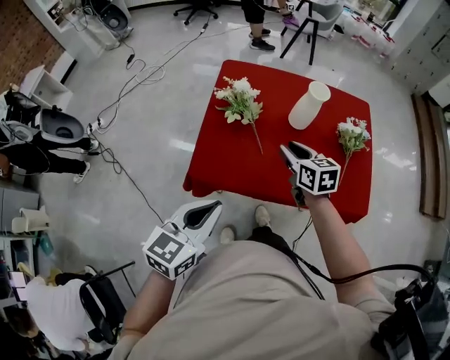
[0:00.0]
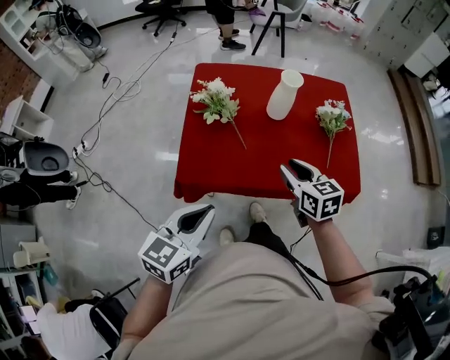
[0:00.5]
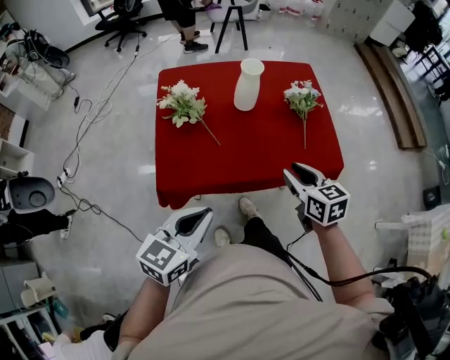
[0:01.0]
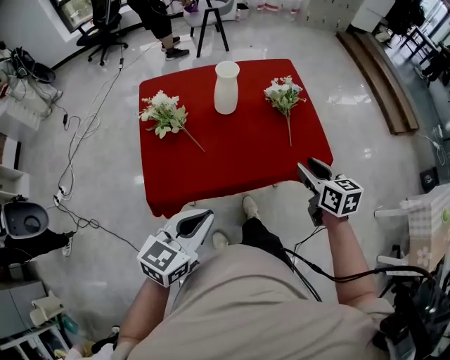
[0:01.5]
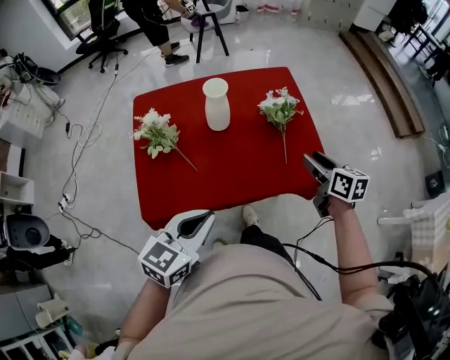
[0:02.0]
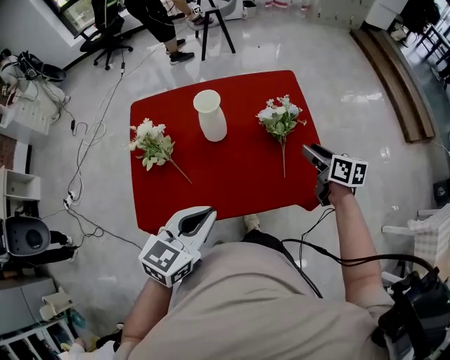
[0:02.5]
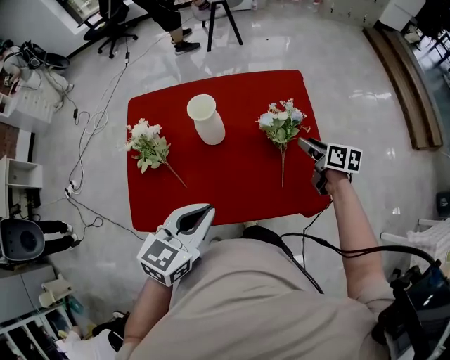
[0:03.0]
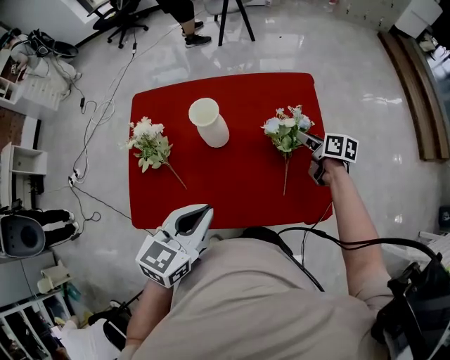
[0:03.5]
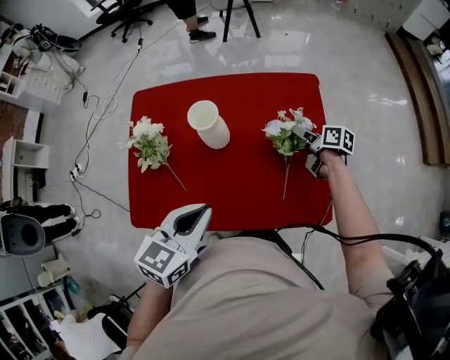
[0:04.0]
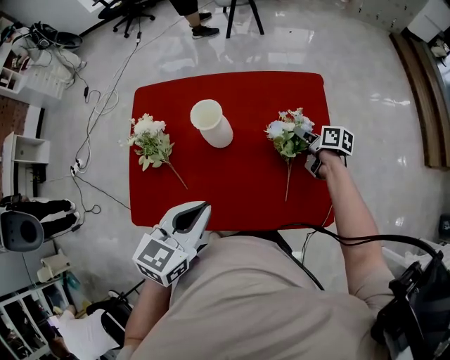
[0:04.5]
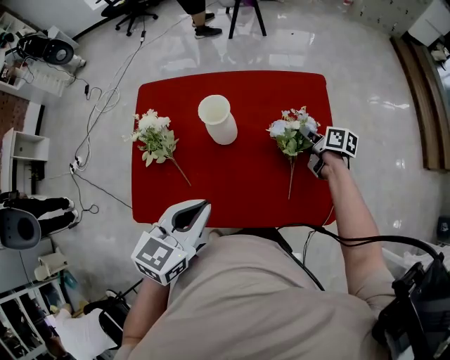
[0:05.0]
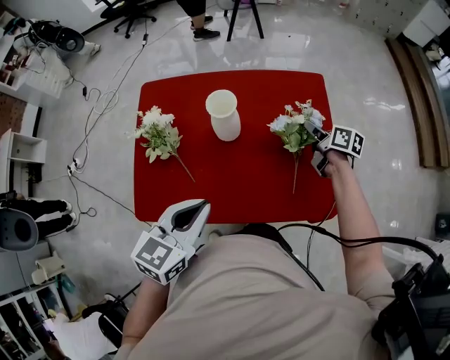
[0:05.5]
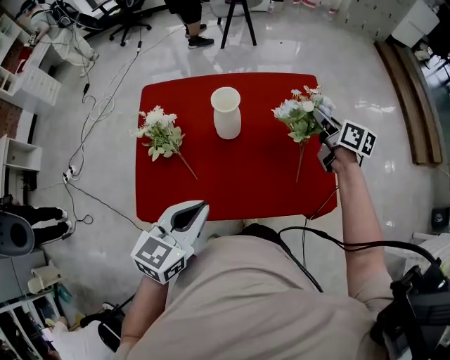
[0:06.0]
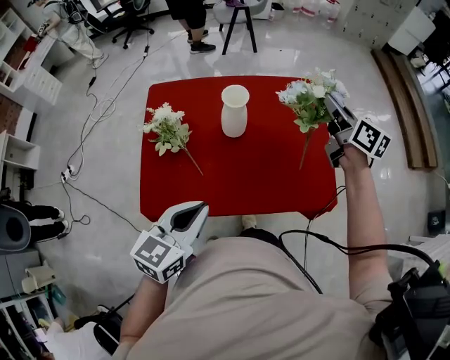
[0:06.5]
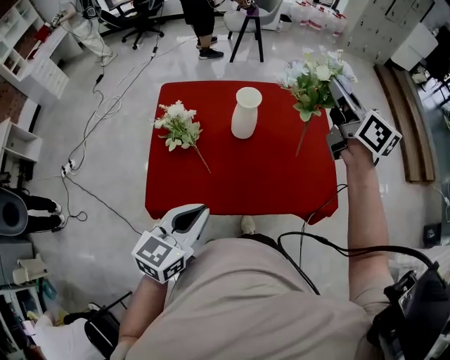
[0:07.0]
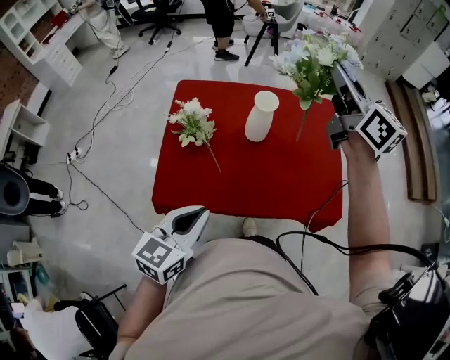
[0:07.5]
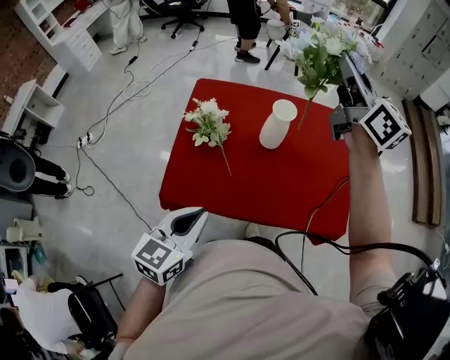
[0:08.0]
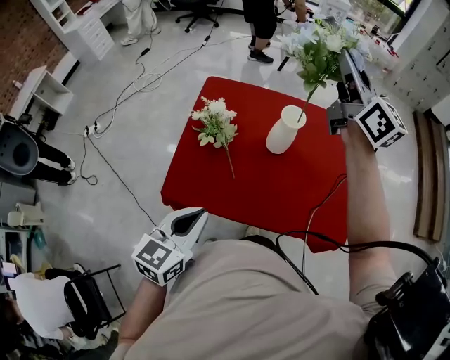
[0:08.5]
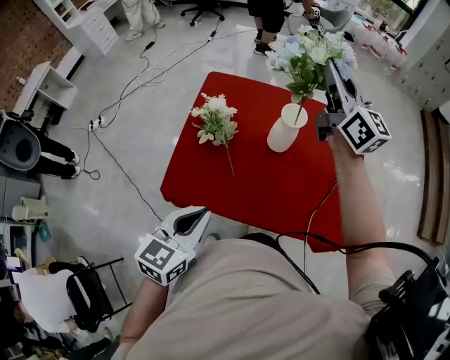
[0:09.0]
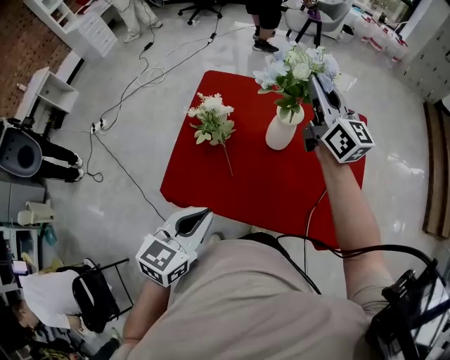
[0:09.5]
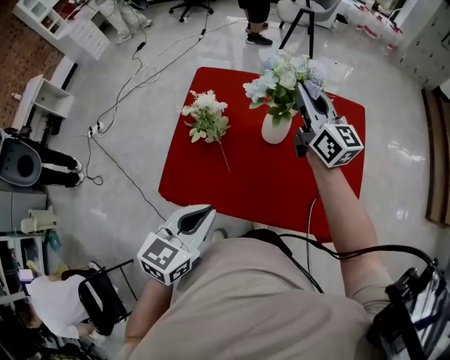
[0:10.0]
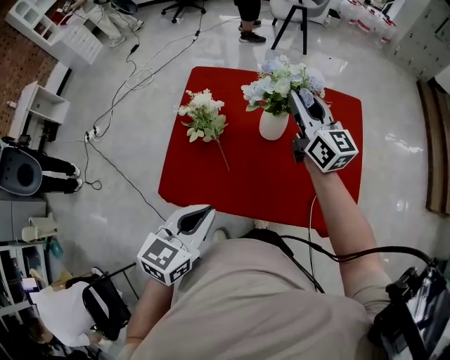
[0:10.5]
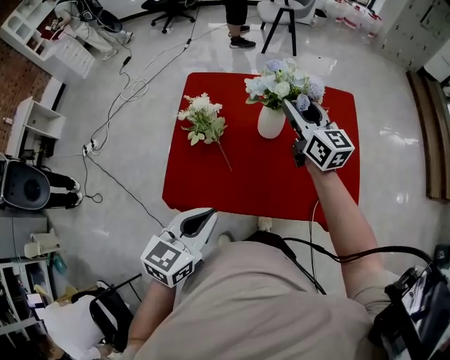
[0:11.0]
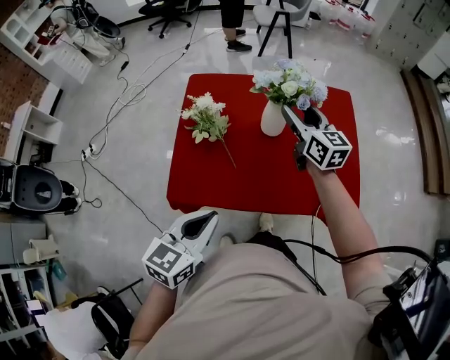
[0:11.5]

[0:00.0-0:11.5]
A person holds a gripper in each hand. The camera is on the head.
0:00.0 to 0:02.0: The left gripper moves some 15 cm, and turns by roughly 30 degrees, while the right gripper shifts by roughly 30 cm, and changes its angle by some 30 degrees.
0:02.0 to 0:04.0: The right gripper shifts approximately 30 cm forward and downward, and turns by about 30 degrees, while the left gripper goes approximately 15 cm forward and to the right.
0:04.0 to 0:06.0: The right gripper is displaced upward by some 15 cm, rotates some 30 degrees, and closes up; the left gripper goes roughly 10 cm to the left and backward.
0:06.0 to 0:07.5: The right gripper goes approximately 35 cm upward and to the left, and angles its fingers upward, by some 30 degrees. The left gripper is displaced backward and to the left by roughly 10 cm.
0:07.5 to 0:09.5: The right gripper travels downward, forward and to the left by roughly 15 cm.
0:09.5 to 0:11.5: The right gripper travels downward and backward by roughly 15 cm, and opens its fingers. The left gripper shifts by some 5 cm.

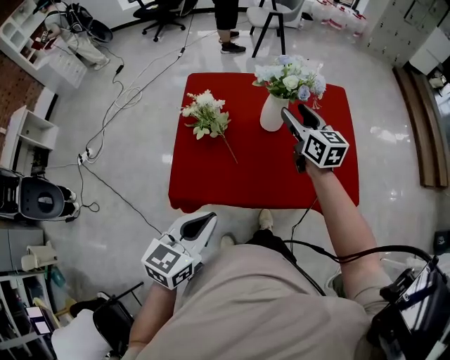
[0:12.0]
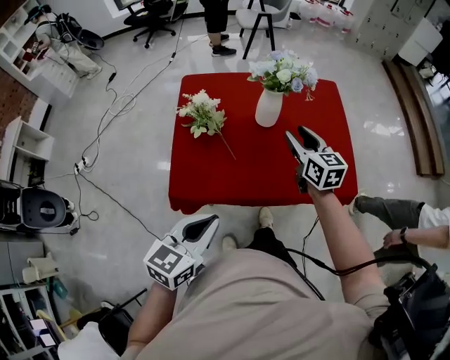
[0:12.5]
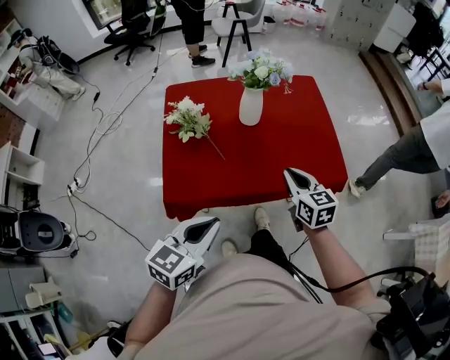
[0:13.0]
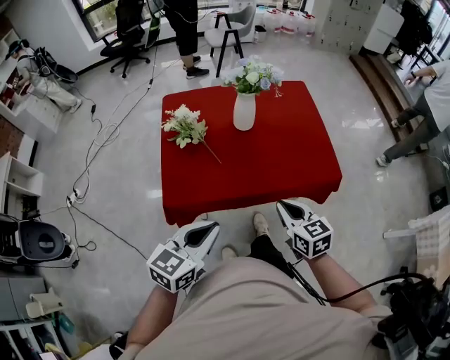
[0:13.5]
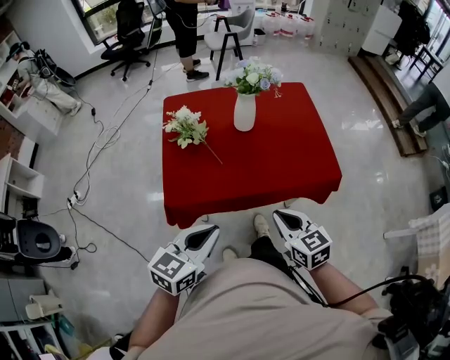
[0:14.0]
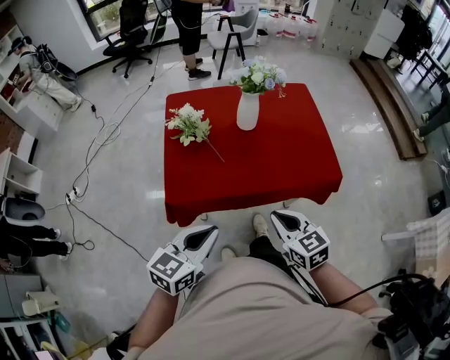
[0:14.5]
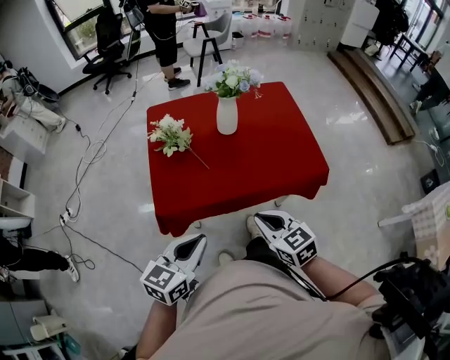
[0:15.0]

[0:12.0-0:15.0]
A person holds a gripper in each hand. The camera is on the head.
0:12.0 to 0:13.5: The left gripper moves backward, about 5 cm; the right gripper is displaced backward by some 35 cm, and closes its fingers.
0:13.5 to 0:15.0: The right gripper goes roughly 5 cm backward.

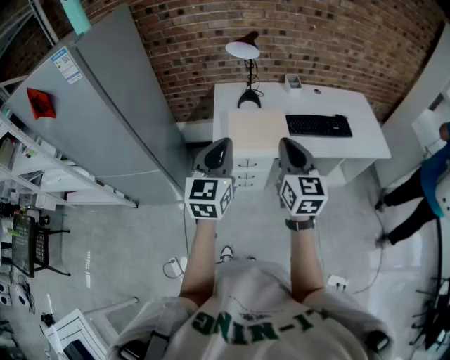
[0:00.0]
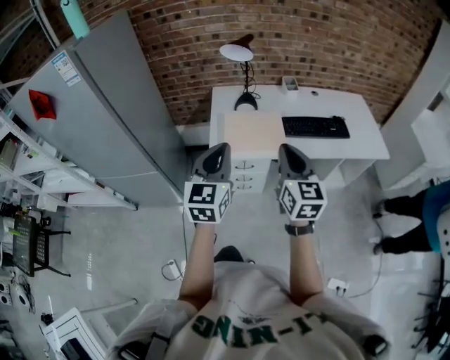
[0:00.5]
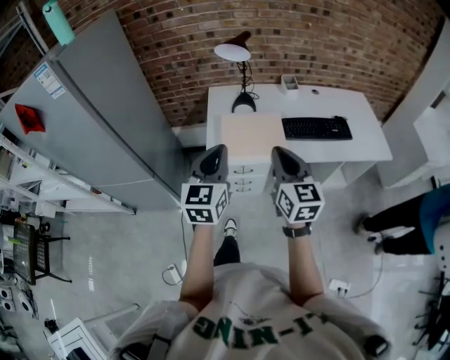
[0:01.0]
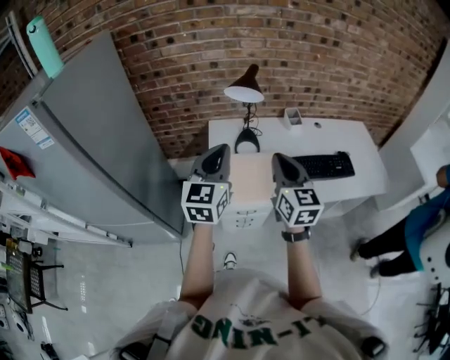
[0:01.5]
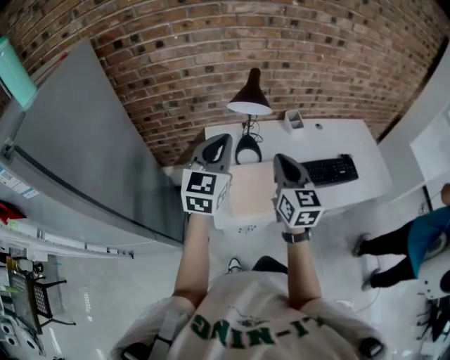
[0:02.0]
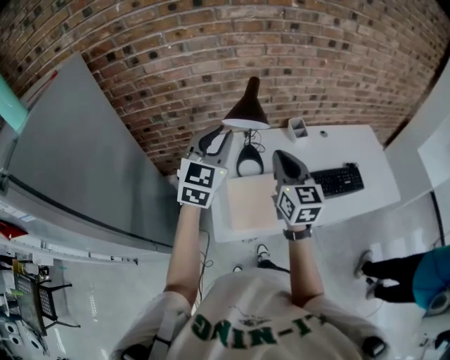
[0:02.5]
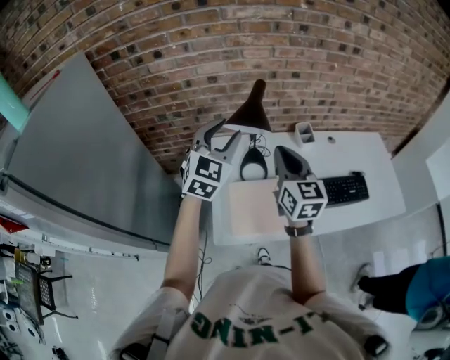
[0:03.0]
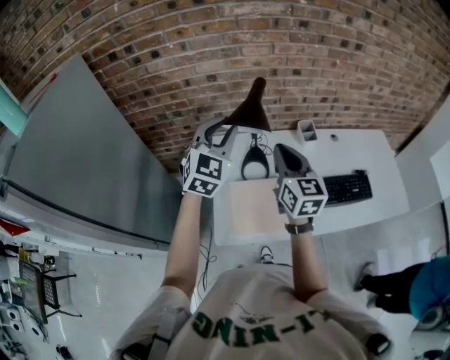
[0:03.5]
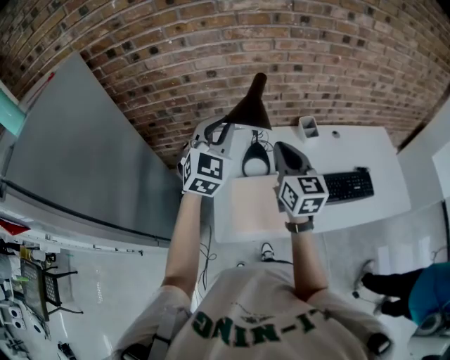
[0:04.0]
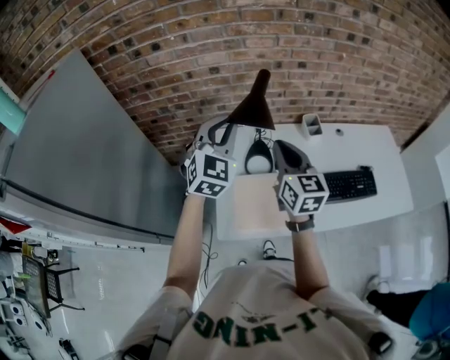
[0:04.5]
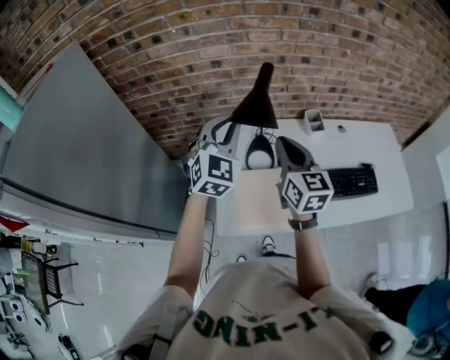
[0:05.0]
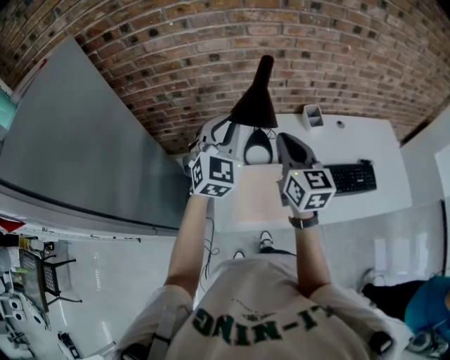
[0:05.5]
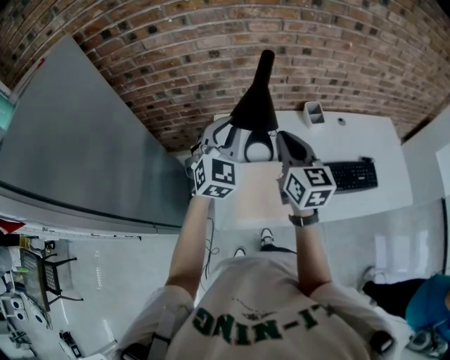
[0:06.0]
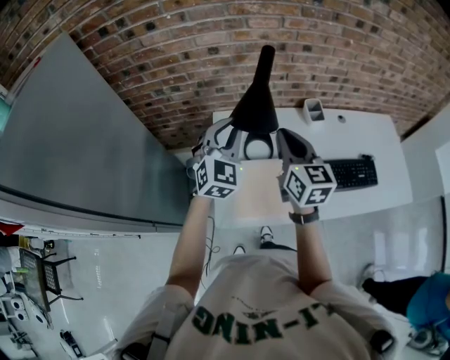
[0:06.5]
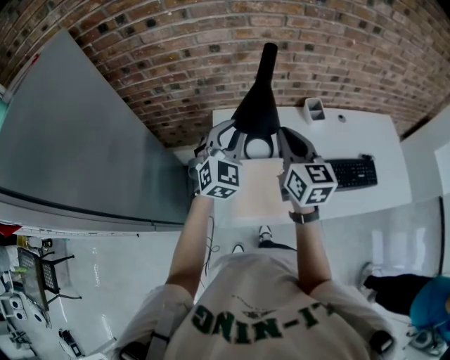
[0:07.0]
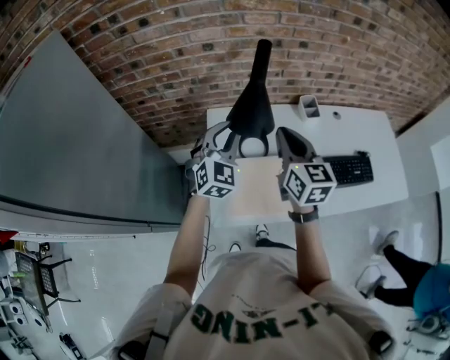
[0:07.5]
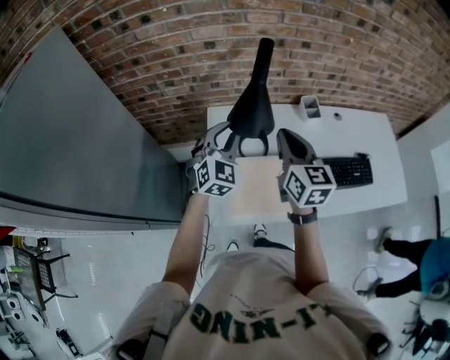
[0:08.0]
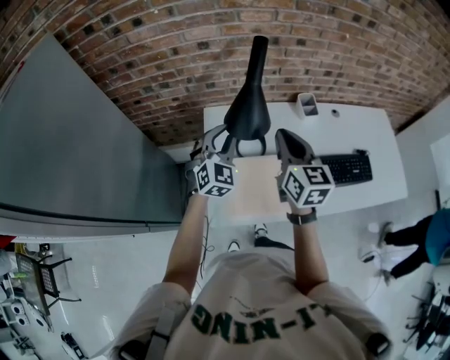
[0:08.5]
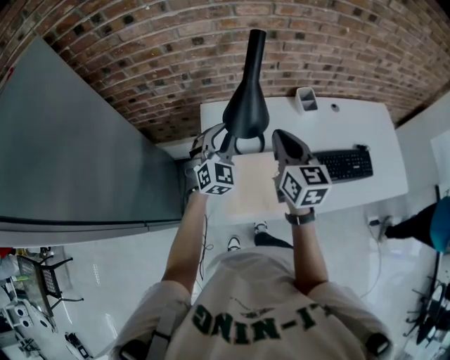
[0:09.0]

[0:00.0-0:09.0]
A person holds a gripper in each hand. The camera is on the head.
0:00.0 to 0:02.0: The grippers both shift forward by approximately 30 cm.
0:02.0 to 0:04.5: Both grippers travel together forward, approximately 15 cm. The left gripper changes its angle by roughly 30 degrees, and opens and closes again.
0:04.5 to 0:07.0: The left gripper is displaced downward by about 10 cm.
0:07.0 to 0:09.0: The left gripper travels downward by some 10 cm.

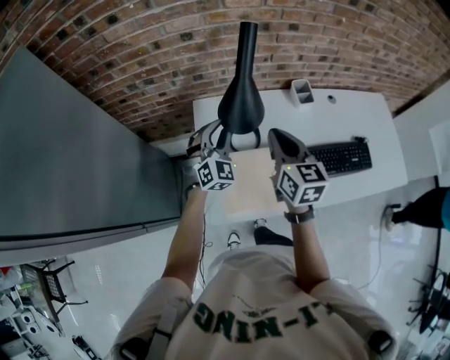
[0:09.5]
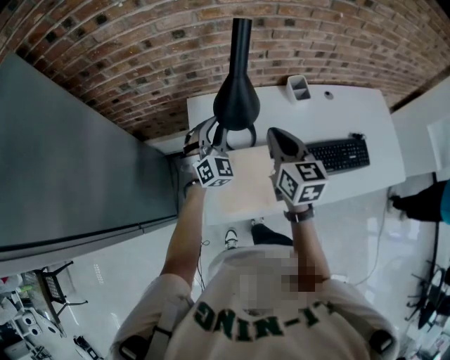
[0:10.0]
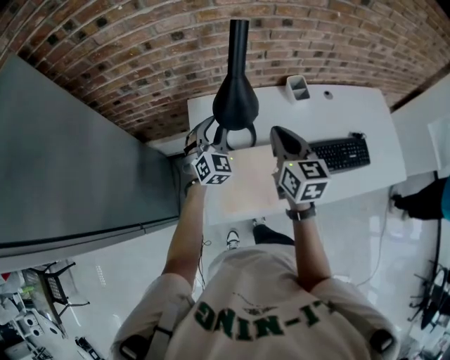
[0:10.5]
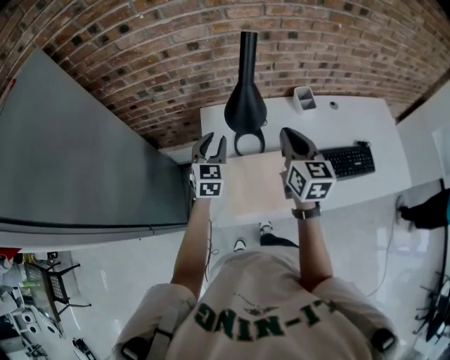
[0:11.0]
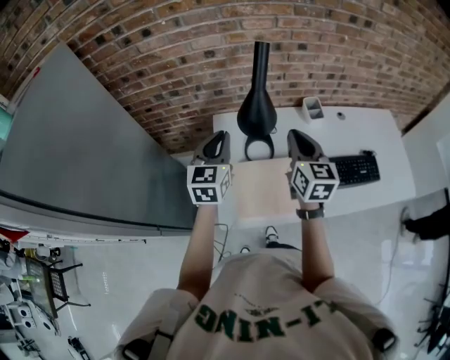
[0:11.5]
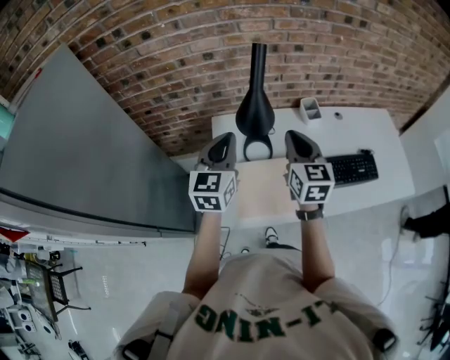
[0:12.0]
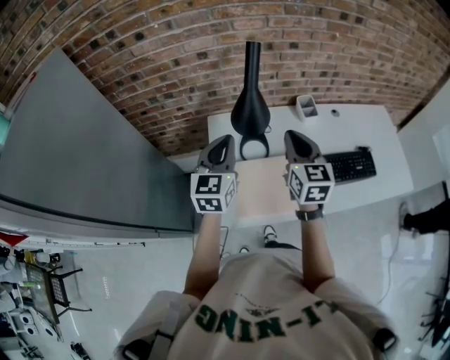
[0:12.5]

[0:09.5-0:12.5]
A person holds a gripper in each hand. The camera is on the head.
0:09.5 to 0:11.0: The left gripper swivels roughly 30 degrees.
0:11.0 to 0:12.5: The left gripper heads upward and backward, covering about 15 cm, and closes up.
